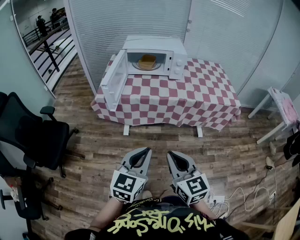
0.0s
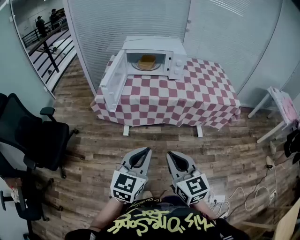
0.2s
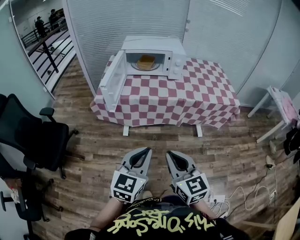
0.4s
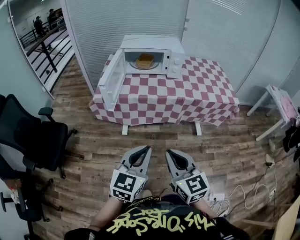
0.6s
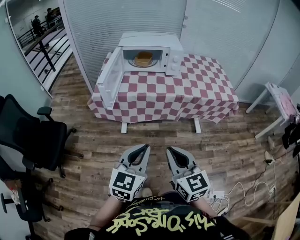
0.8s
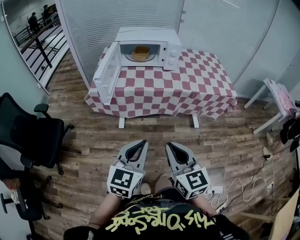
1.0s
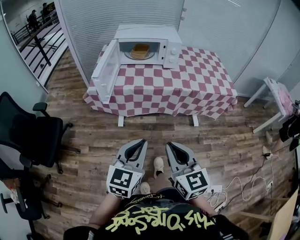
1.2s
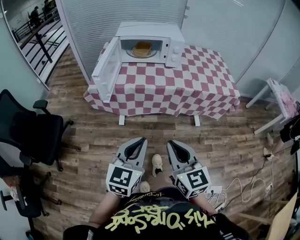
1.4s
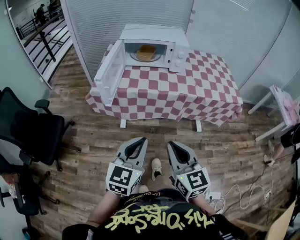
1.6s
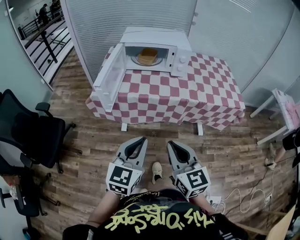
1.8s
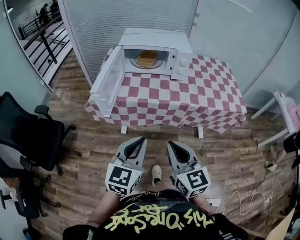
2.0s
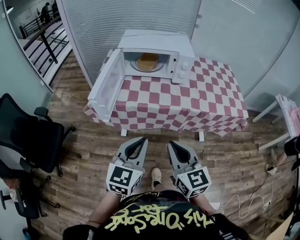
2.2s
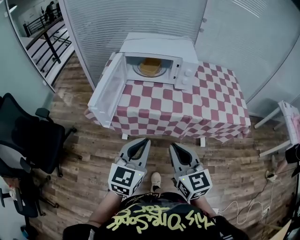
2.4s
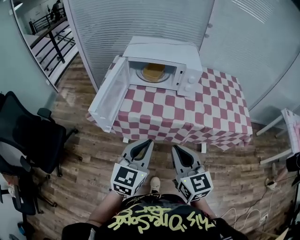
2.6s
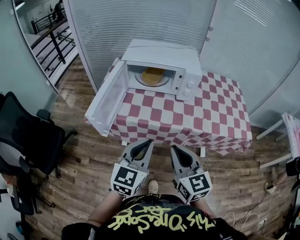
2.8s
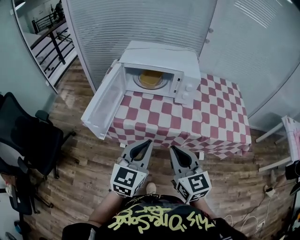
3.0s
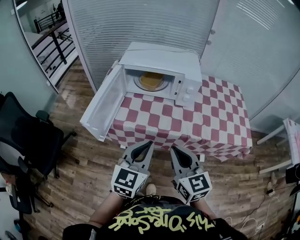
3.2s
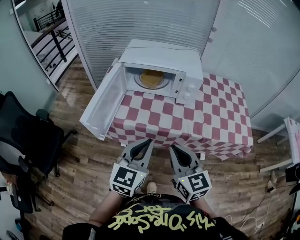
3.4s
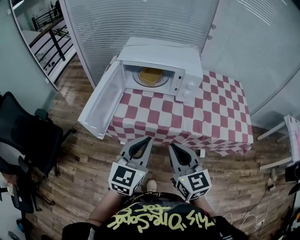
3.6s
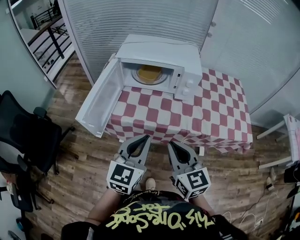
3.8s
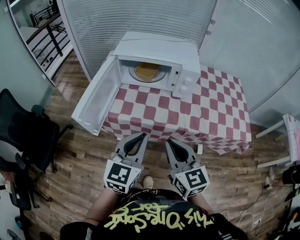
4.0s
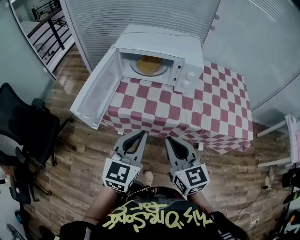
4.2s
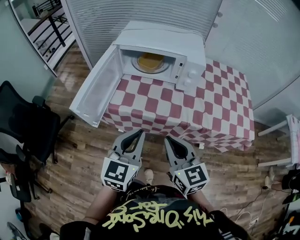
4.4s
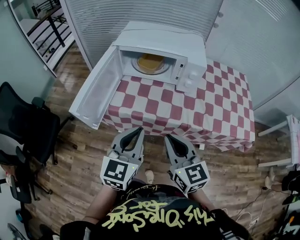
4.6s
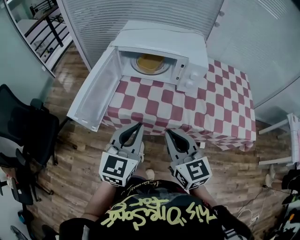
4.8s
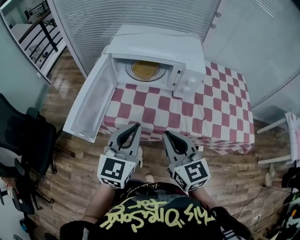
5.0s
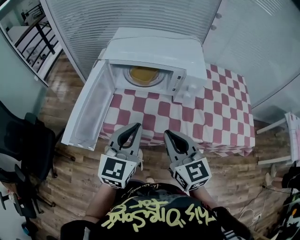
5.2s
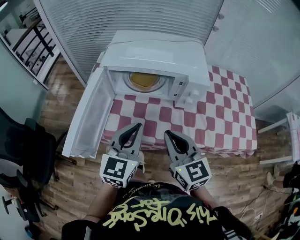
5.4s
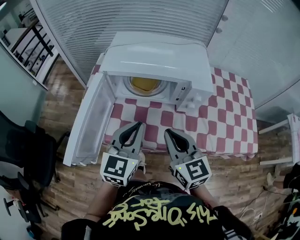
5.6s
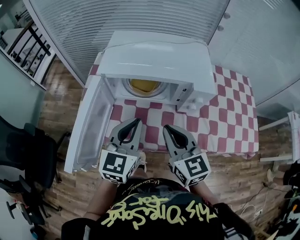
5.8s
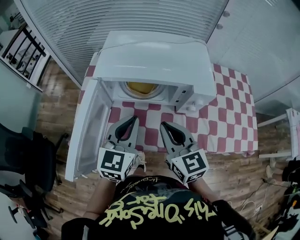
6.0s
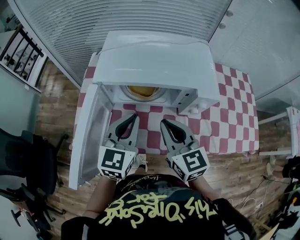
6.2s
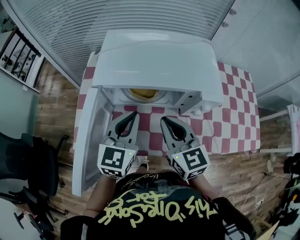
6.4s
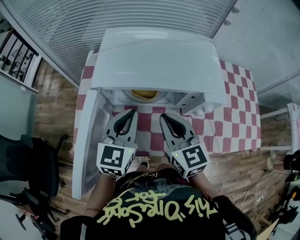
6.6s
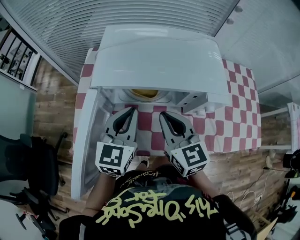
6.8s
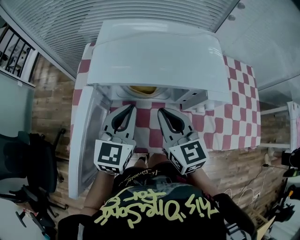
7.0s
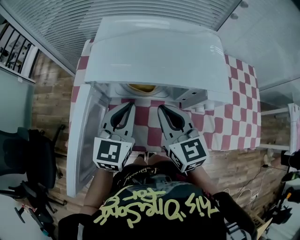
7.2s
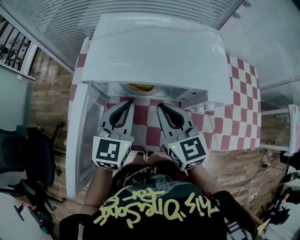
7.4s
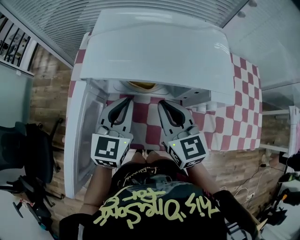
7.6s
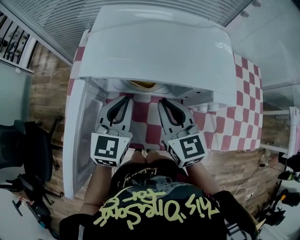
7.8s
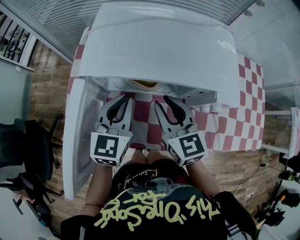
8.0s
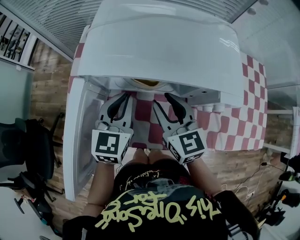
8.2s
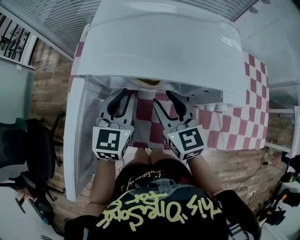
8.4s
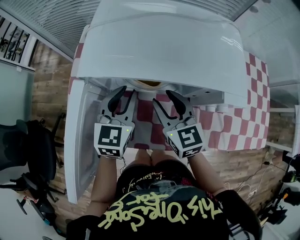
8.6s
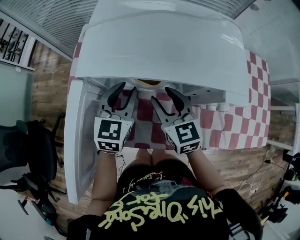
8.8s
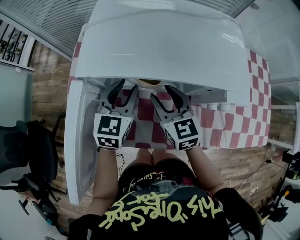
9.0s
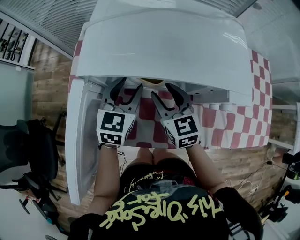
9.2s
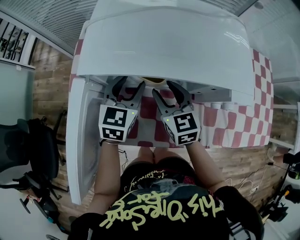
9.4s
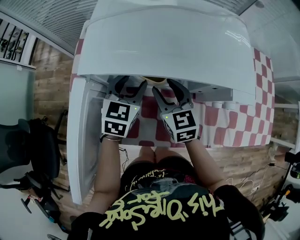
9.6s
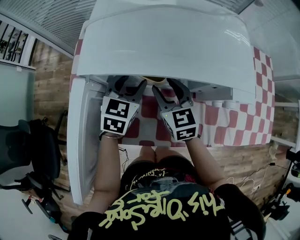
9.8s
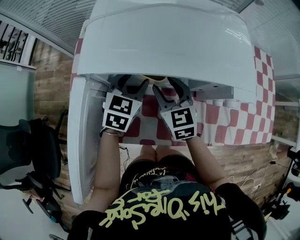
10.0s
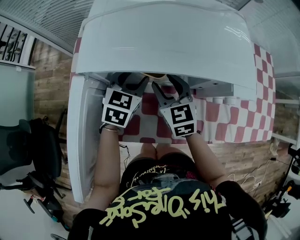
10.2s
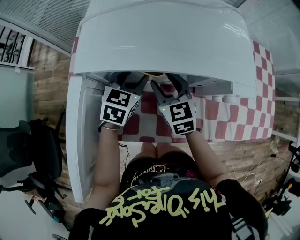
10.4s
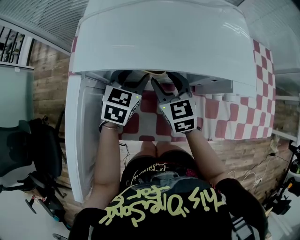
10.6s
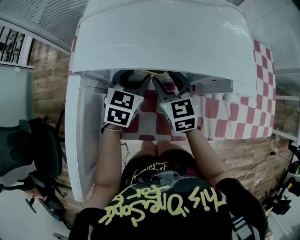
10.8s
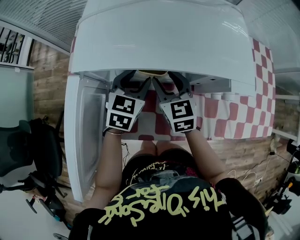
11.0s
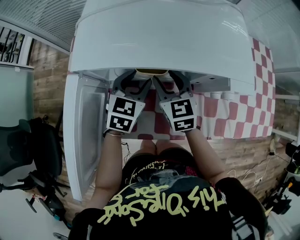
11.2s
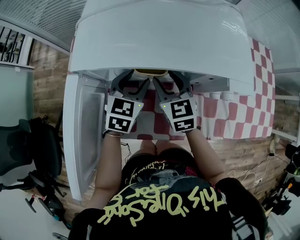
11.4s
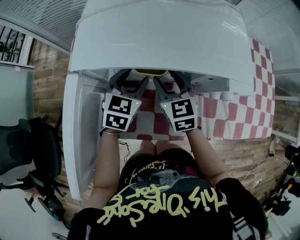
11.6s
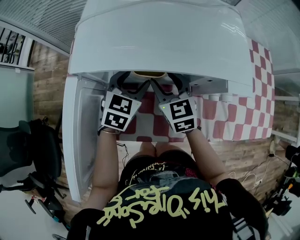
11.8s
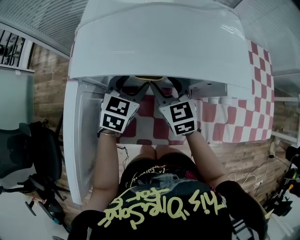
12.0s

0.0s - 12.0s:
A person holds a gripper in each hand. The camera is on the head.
0.0s - 1.6s: The grippers make only small movements.
1.6s - 3.0s: The grippers both shift forward by approximately 20 cm.
3.0s - 4.4s: The grippers stay close to where they were, moving slightly.
4.4s - 6.0s: The two grippers go some 25 cm forward.
6.0s - 7.6s: Both grippers move forward, roughly 10 cm.
7.6s - 9.0s: The right gripper is displaced downward by some 10 cm, and opens up. Meanwhile the left gripper travels downward and forward by about 10 cm, and opens.
9.0s - 10.4s: The left gripper changes place by about 5 cm.
10.4s - 12.0s: There are only small adjustments of the grippers.

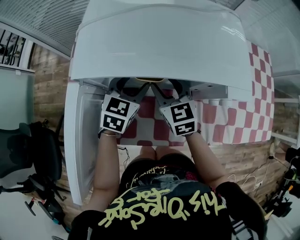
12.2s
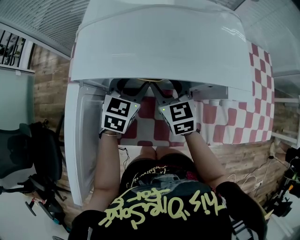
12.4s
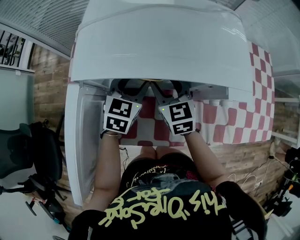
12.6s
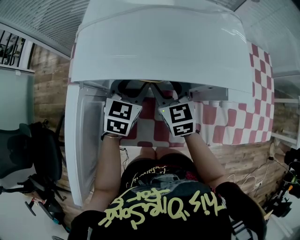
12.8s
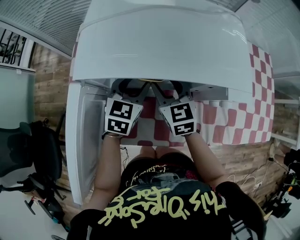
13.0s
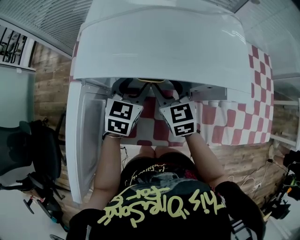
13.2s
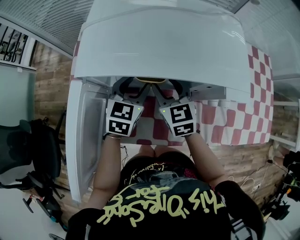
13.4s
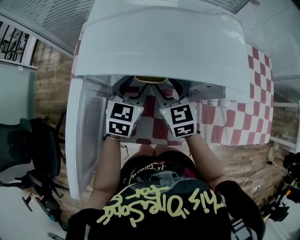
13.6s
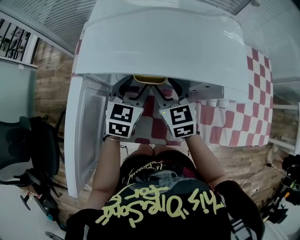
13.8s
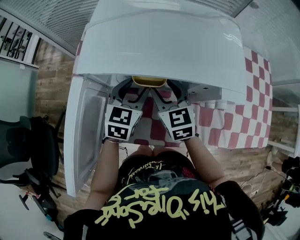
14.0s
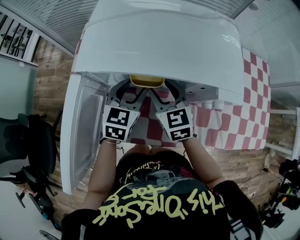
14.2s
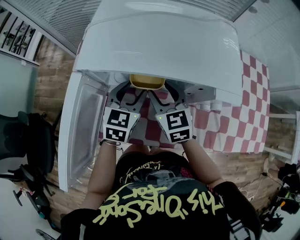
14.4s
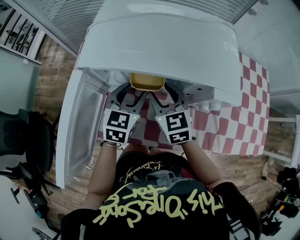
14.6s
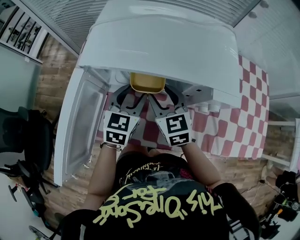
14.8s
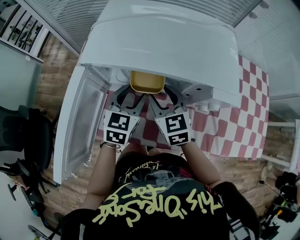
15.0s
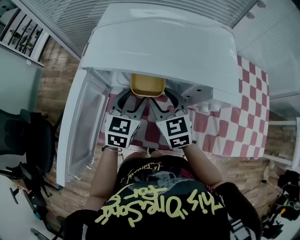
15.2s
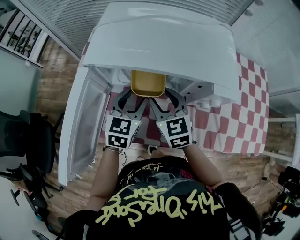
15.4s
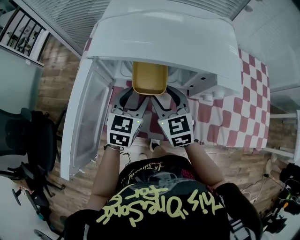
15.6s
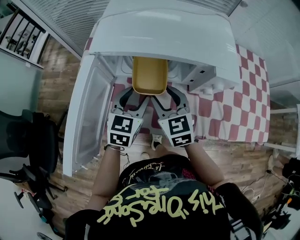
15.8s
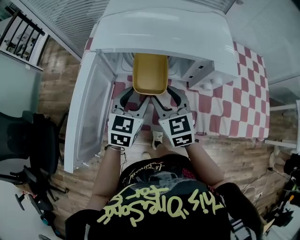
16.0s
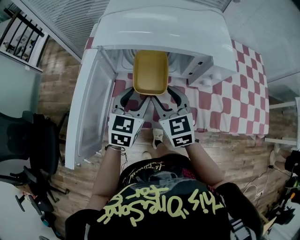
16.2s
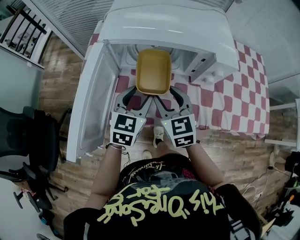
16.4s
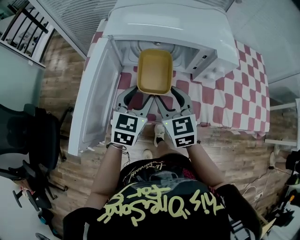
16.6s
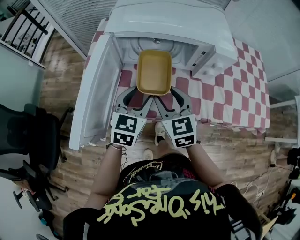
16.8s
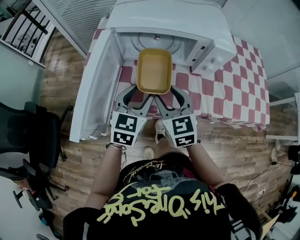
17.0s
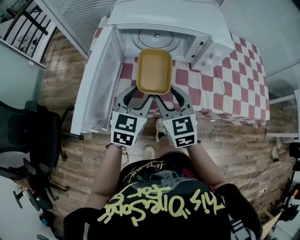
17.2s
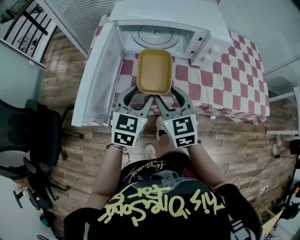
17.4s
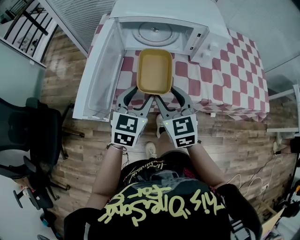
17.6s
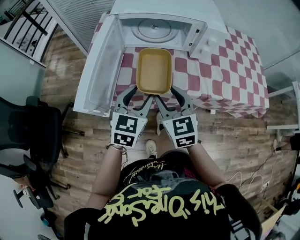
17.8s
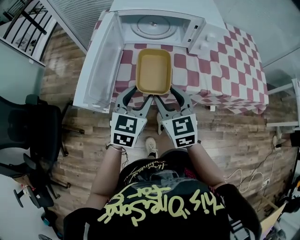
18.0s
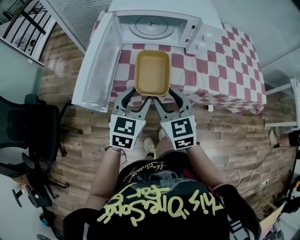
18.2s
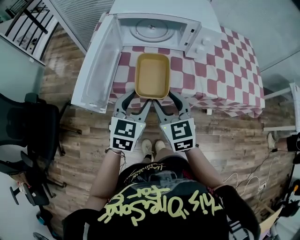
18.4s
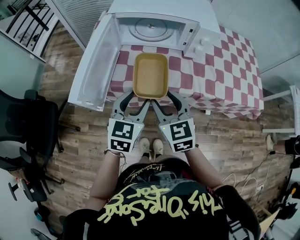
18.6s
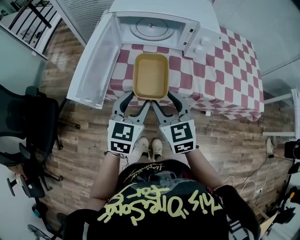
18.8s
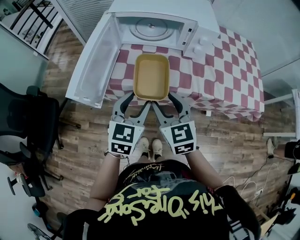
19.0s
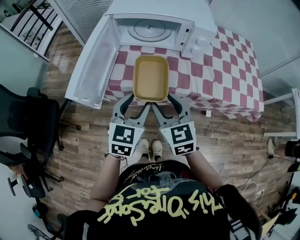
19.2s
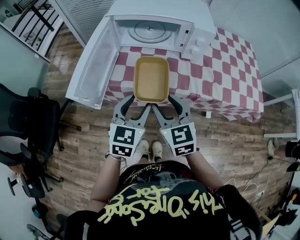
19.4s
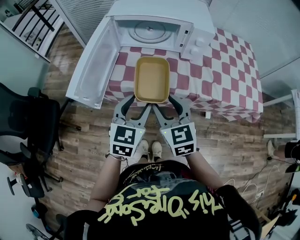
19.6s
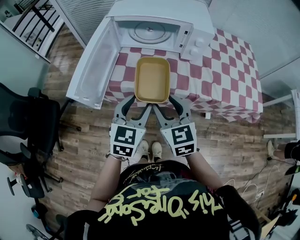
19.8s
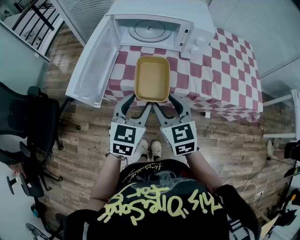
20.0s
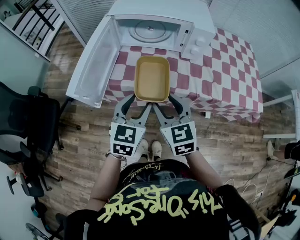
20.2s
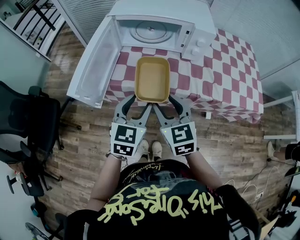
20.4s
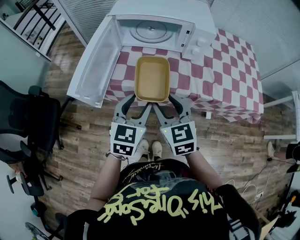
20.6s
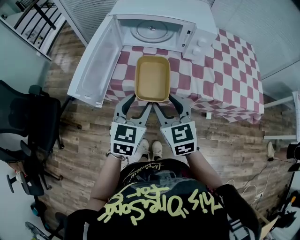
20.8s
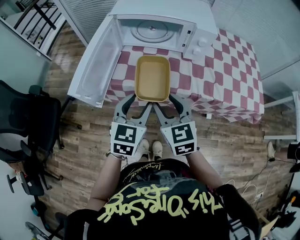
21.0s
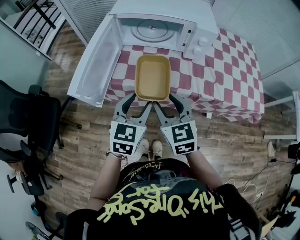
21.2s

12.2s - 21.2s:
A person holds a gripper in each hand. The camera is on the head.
12.2s - 15.2s: There are only small adjustments of the grippers.
15.2s - 16.6s: The two grippers go approximately 10 cm backward.
16.6s - 18.2s: The grippers both shift backward by some 15 cm.
18.2s - 19.8s: The right gripper changes place by about 5 cm; the left gripper ends up some 5 cm from where it was.
19.8s - 21.2s: Both grippers stay about where they are.

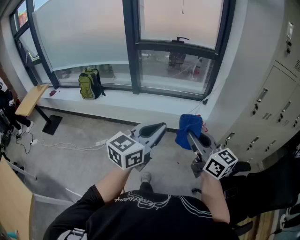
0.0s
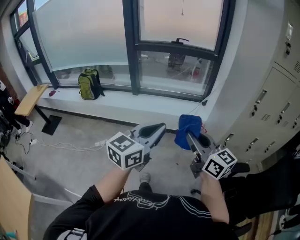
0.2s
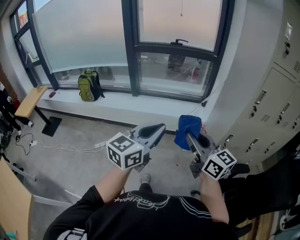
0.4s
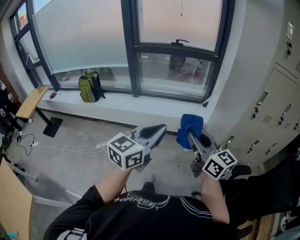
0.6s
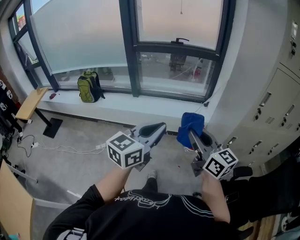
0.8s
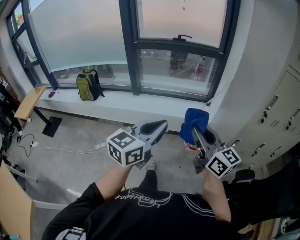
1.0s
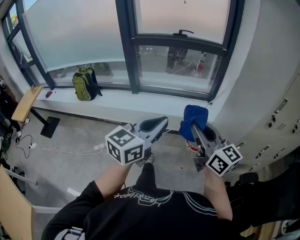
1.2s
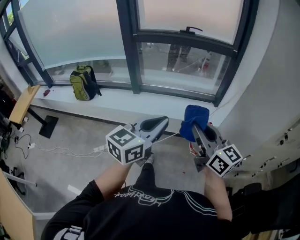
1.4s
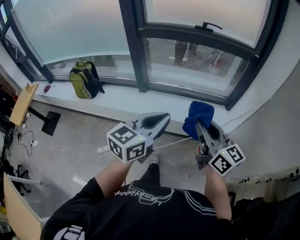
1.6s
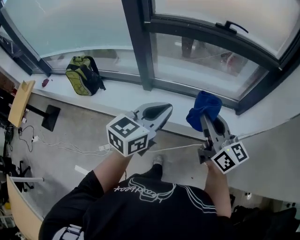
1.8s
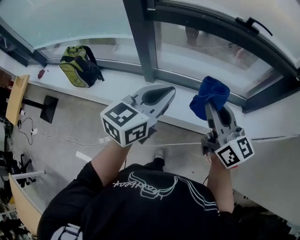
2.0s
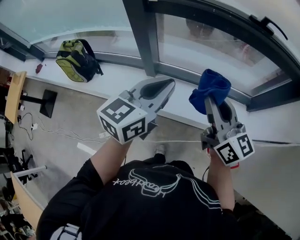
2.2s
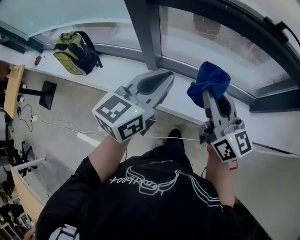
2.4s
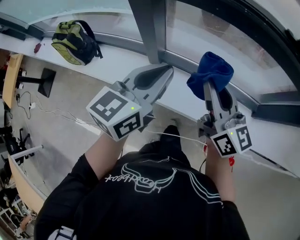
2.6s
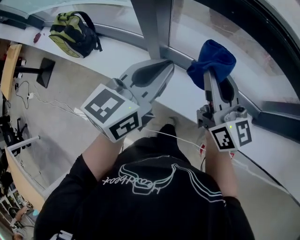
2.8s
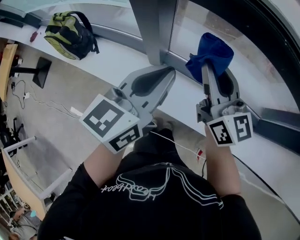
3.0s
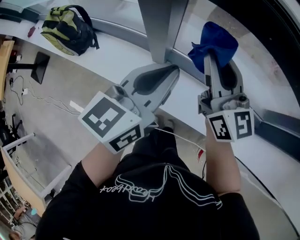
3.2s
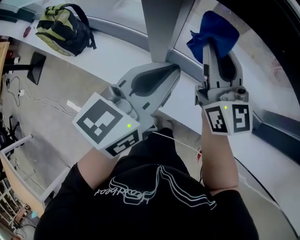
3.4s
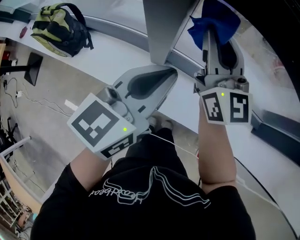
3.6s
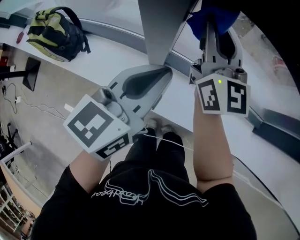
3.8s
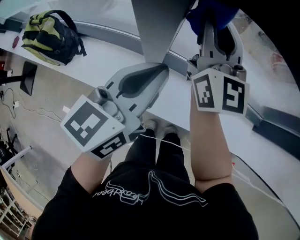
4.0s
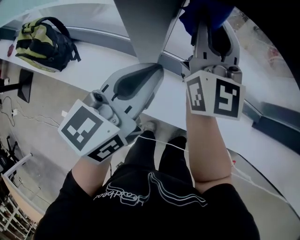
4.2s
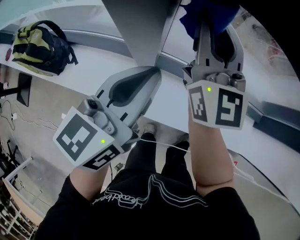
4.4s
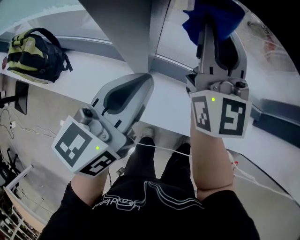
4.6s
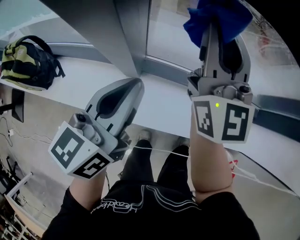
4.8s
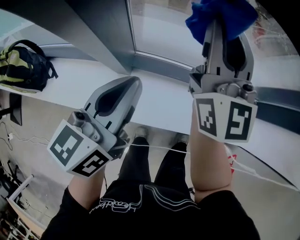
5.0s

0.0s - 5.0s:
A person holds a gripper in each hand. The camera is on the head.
0.0s - 1.6s: The two grippers travel together, forward, about 40 cm.
1.6s - 3.4s: The two grippers travel together, forward and to the left, some 60 cm. The left gripper changes its angle by roughly 20 degrees.
3.4s - 5.0s: The right gripper moves to the right and forward, about 10 cm, and turns by approximately 30 degrees; the left gripper moves downward, about 10 cm.
